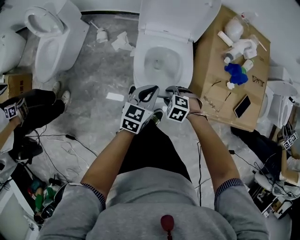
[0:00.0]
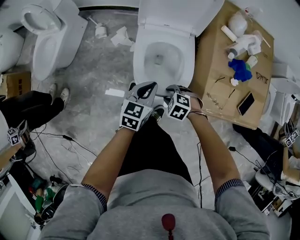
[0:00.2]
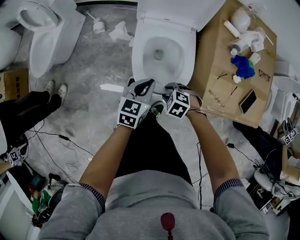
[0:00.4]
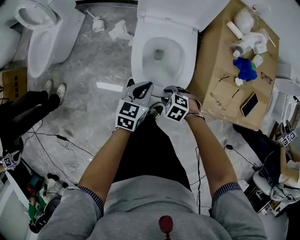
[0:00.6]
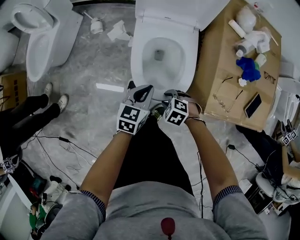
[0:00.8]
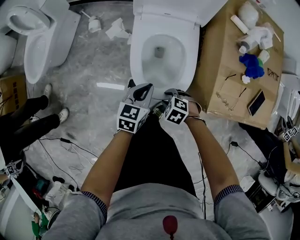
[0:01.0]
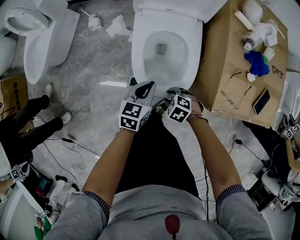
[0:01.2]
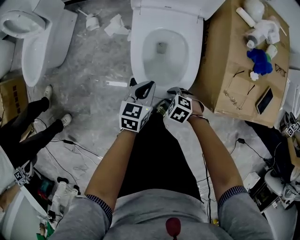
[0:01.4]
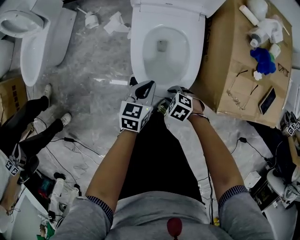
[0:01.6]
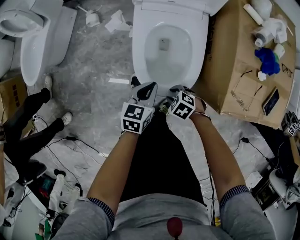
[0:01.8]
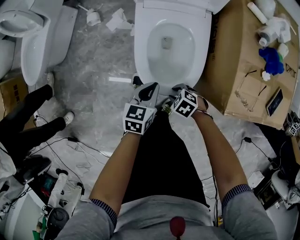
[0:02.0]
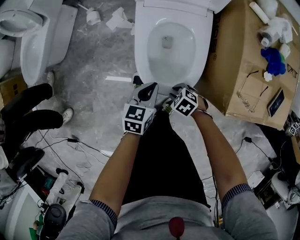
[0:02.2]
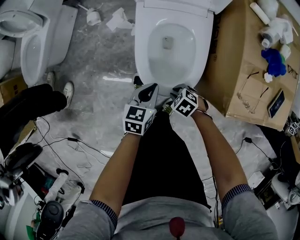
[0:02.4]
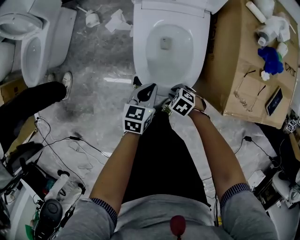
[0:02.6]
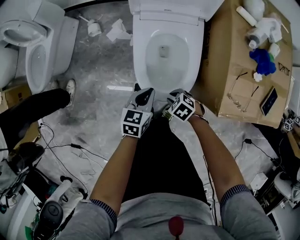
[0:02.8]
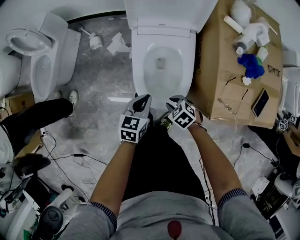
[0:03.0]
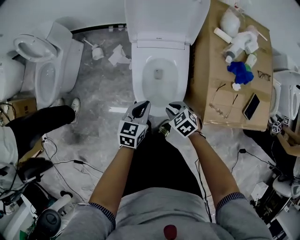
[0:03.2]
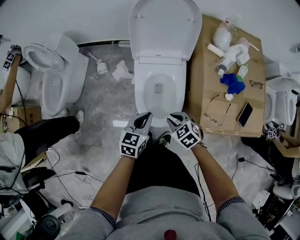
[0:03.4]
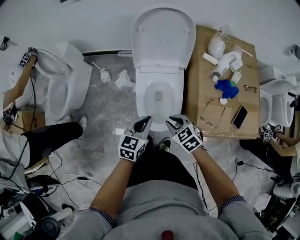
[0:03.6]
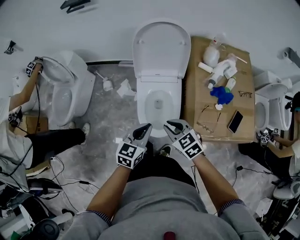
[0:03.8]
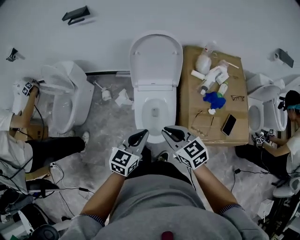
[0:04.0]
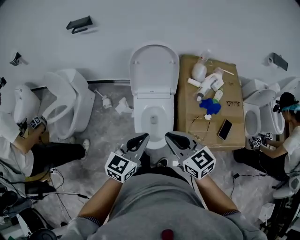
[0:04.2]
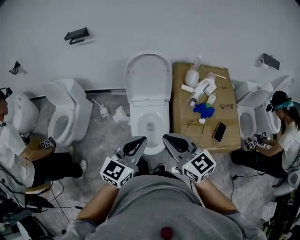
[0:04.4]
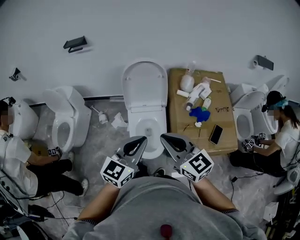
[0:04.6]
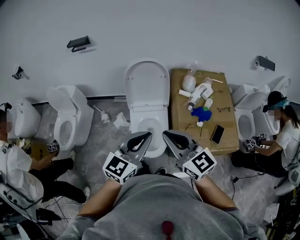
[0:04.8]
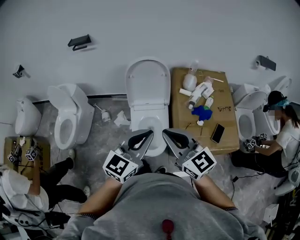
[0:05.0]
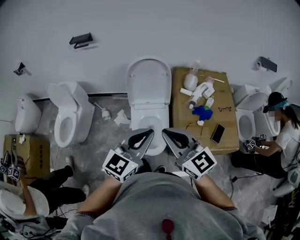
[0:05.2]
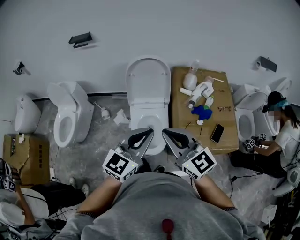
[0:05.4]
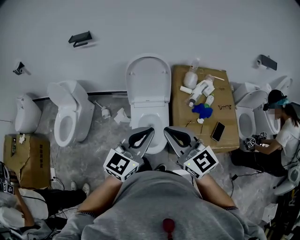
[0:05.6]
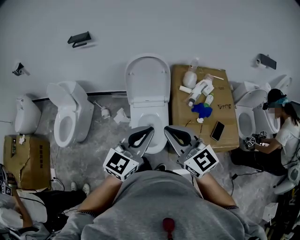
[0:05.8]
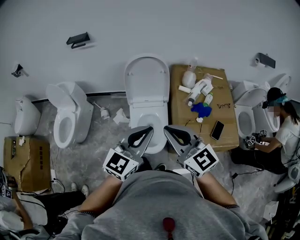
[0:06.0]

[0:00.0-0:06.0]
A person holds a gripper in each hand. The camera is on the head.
0:00.0 to 0:01.6: Both grippers move downward, roughly 15 cm.
0:01.6 to 0:03.0: The right gripper heads upward, covering about 5 cm.
0:03.0 to 0:04.4: The two grippers go about 50 cm upward. The right gripper points its fingers approximately 50 degrees further upward. The left gripper changes its angle by some 30 degrees.
0:04.4 to 0:06.0: Both grippers move upward, roughly 5 cm.

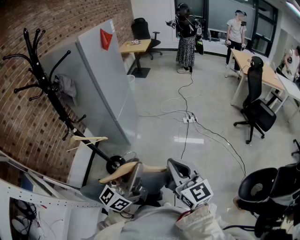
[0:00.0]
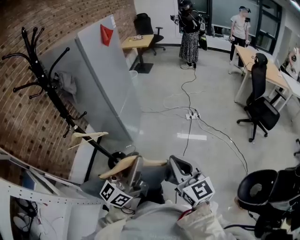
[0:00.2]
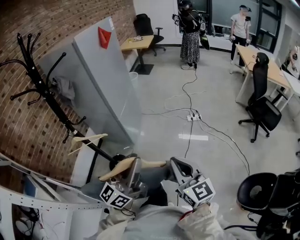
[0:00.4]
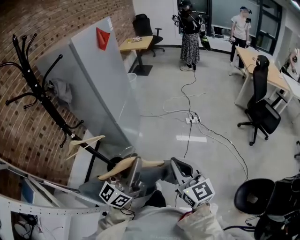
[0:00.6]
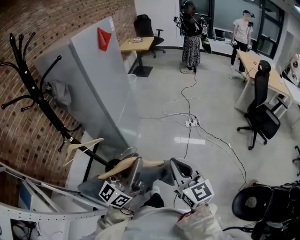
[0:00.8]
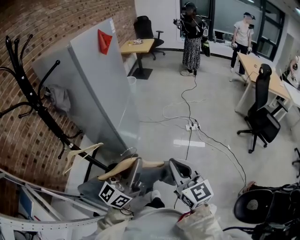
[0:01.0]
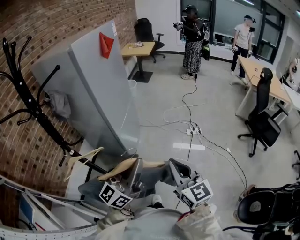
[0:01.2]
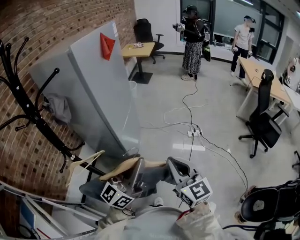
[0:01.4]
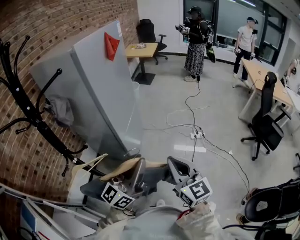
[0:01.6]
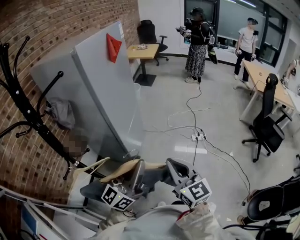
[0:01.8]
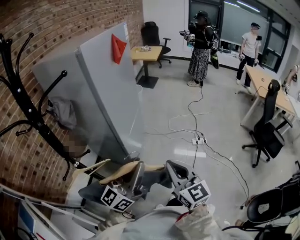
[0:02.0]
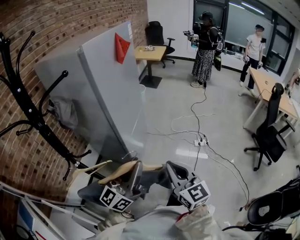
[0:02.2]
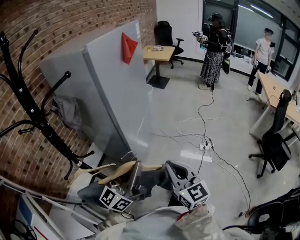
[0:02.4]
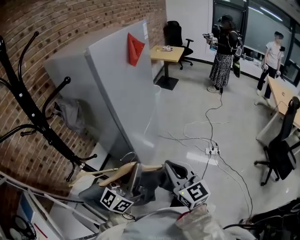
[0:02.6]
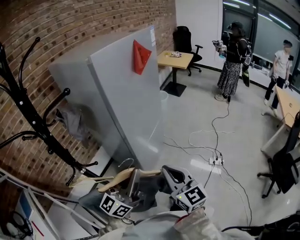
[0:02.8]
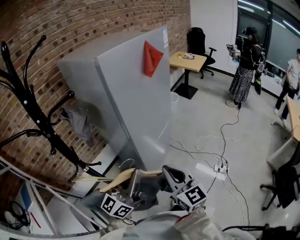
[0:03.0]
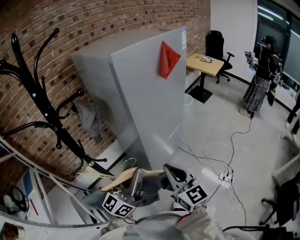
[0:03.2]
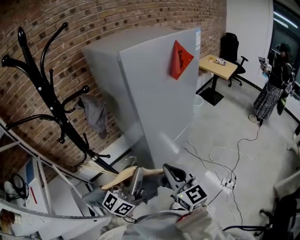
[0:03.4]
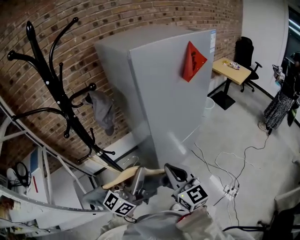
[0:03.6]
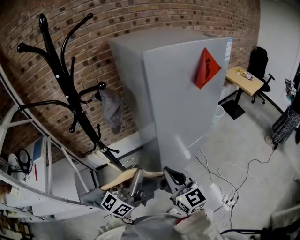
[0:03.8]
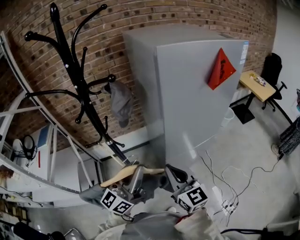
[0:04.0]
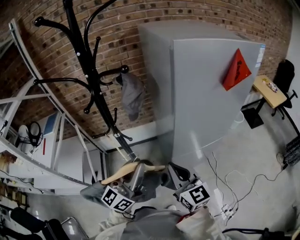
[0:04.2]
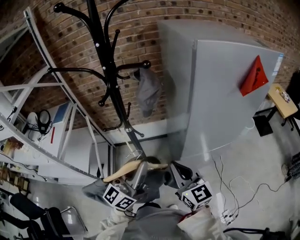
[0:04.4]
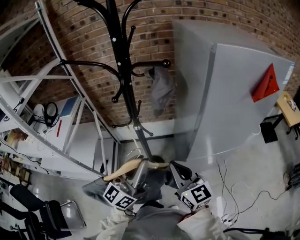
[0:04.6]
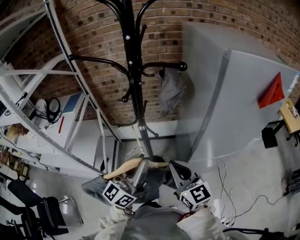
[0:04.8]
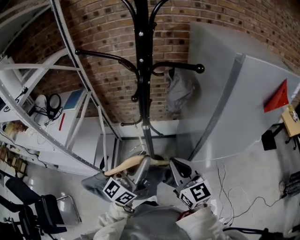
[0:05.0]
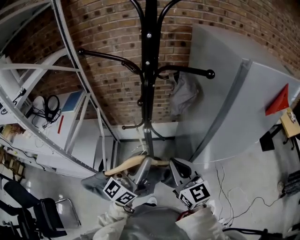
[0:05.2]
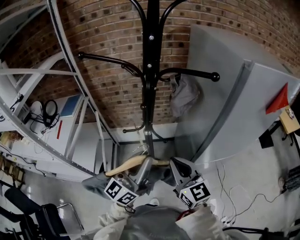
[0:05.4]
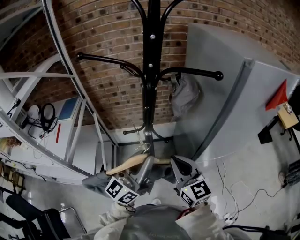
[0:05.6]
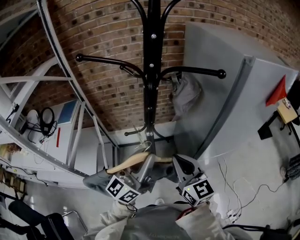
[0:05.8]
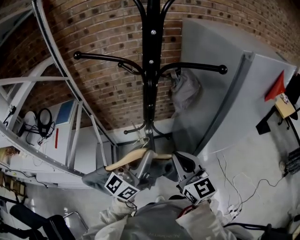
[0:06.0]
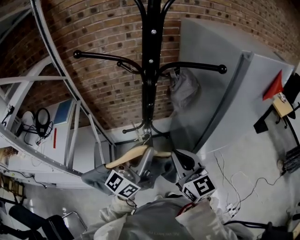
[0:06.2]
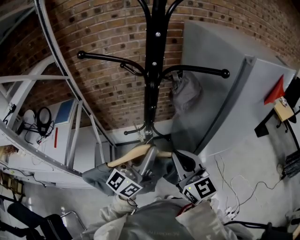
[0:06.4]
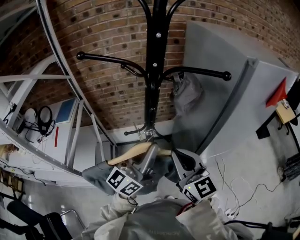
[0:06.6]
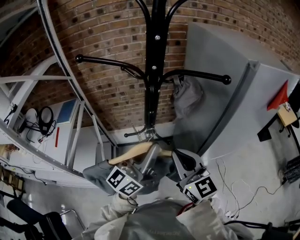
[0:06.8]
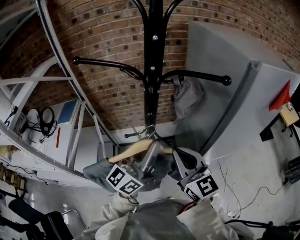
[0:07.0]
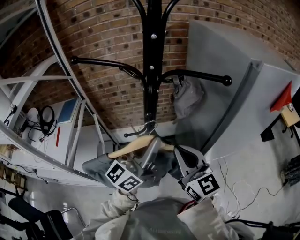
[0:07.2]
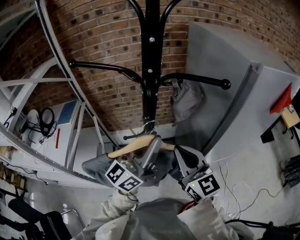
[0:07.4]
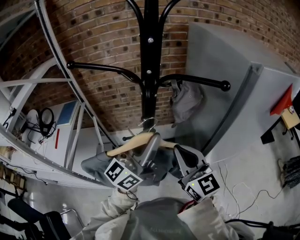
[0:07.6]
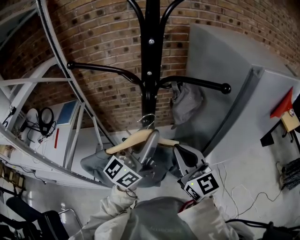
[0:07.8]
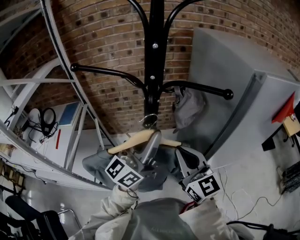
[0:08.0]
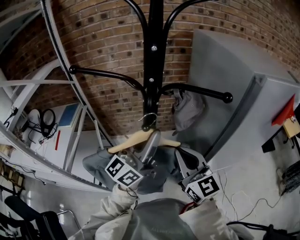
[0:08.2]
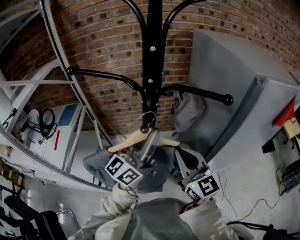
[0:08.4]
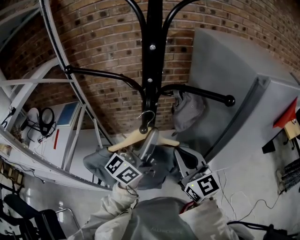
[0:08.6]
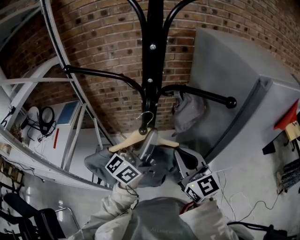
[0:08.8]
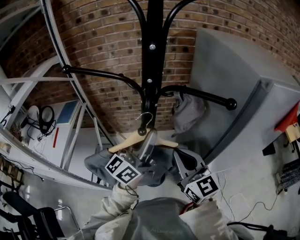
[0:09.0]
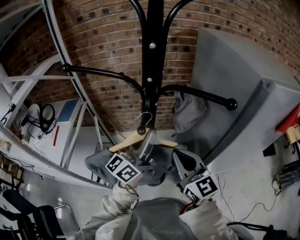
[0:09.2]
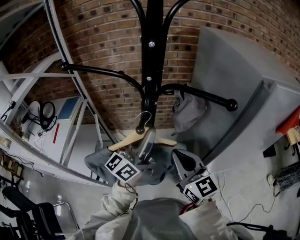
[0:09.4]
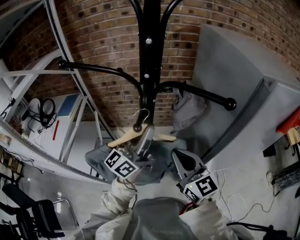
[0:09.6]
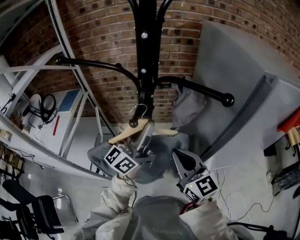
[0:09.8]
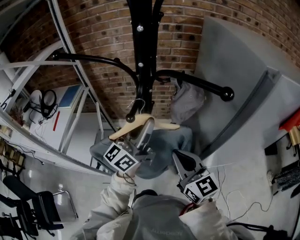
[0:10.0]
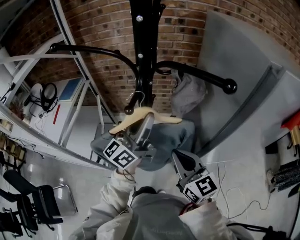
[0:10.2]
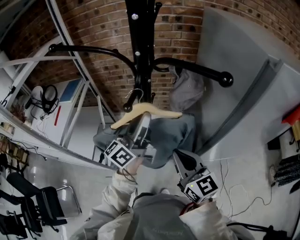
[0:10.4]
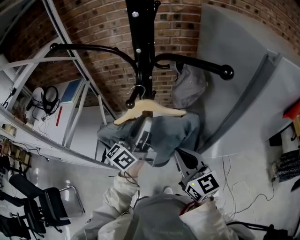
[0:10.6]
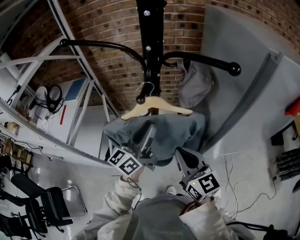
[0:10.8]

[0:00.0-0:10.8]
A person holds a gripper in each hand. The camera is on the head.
0:00.0 to 0:01.6: The two grippers go some 30 cm forward.
0:01.6 to 0:03.0: The left gripper moves approximately 20 cm, and turns by approximately 30 degrees. The right gripper moves approximately 20 cm, and rotates roughly 30 degrees.
0:03.0 to 0:04.6: The right gripper changes place by some 15 cm, and turns by some 50 degrees. Meanwhile the left gripper ends up some 10 cm from where it was, and turns by approximately 50 degrees.
0:04.6 to 0:06.2: Both grippers move to the left and forward, approximately 15 cm.
0:06.2 to 0:07.8: The left gripper is displaced forward and upward by some 10 cm; the right gripper moves forward, about 5 cm.
0:07.8 to 0:09.2: The left gripper is displaced forward by some 5 cm.
0:09.2 to 0:10.8: The left gripper travels downward by roughly 10 cm. Meanwhile the right gripper is displaced backward and downward by roughly 10 cm.

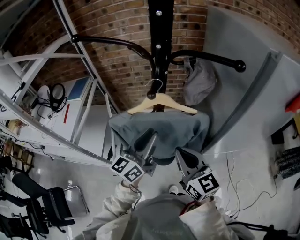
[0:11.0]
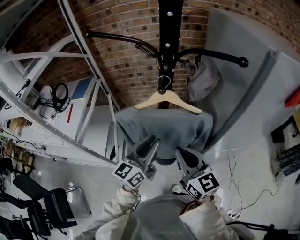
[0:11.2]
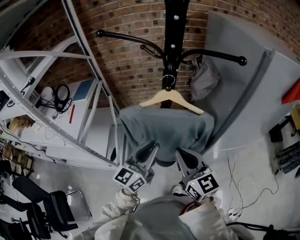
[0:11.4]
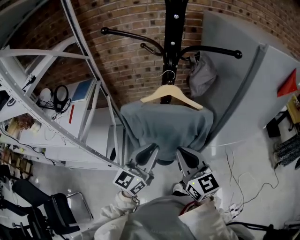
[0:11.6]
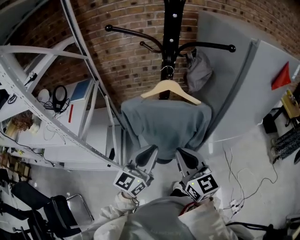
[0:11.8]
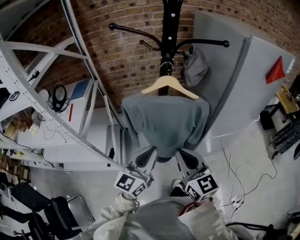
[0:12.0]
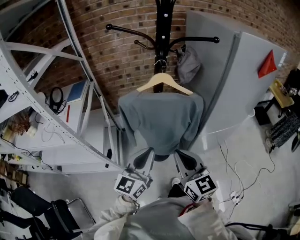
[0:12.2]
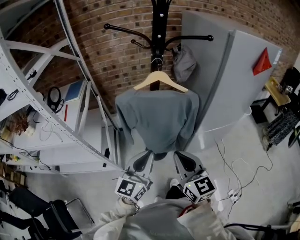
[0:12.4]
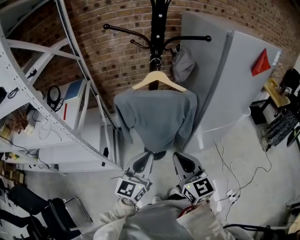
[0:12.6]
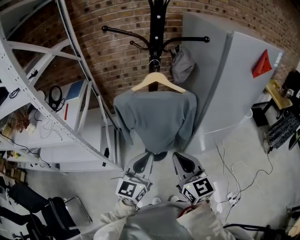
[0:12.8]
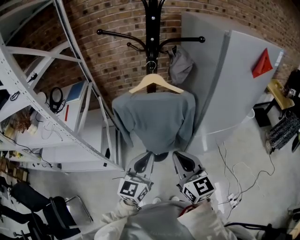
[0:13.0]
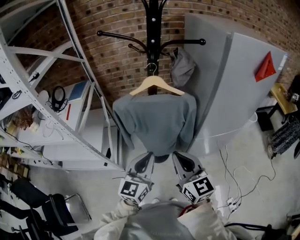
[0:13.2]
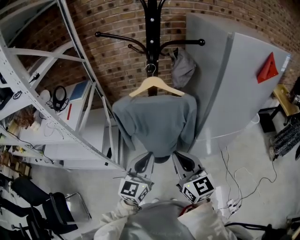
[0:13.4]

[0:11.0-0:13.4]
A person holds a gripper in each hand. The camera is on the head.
0:11.0 to 0:12.2: The two grippers go roughly 20 cm backward. The left gripper closes up.
0:12.2 to 0:13.4: The two grippers go about 5 cm to the right.

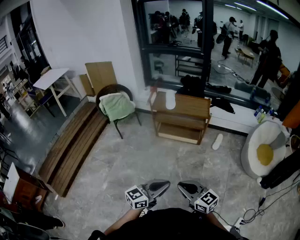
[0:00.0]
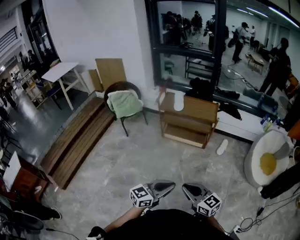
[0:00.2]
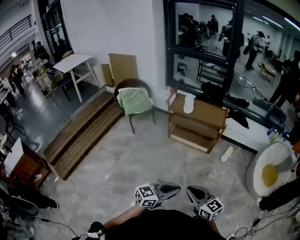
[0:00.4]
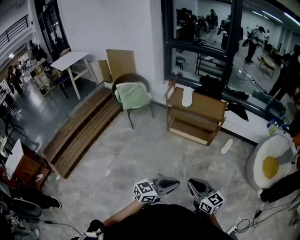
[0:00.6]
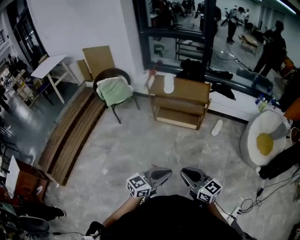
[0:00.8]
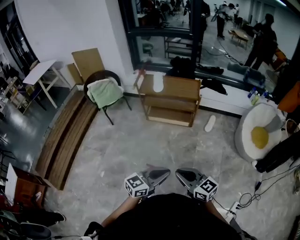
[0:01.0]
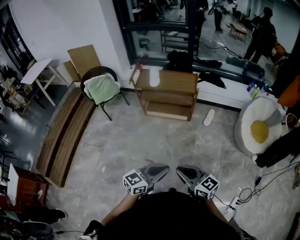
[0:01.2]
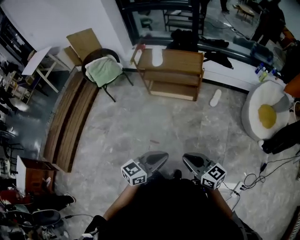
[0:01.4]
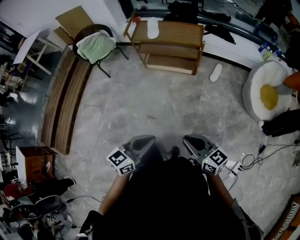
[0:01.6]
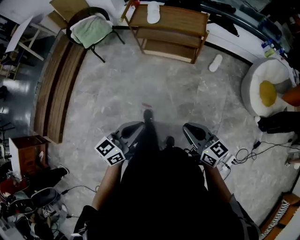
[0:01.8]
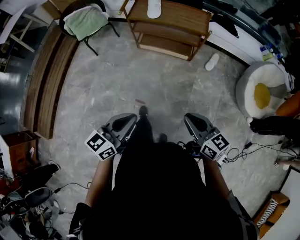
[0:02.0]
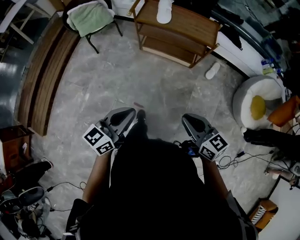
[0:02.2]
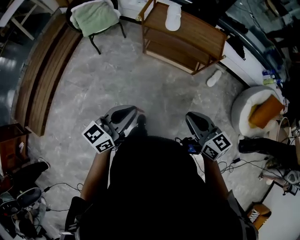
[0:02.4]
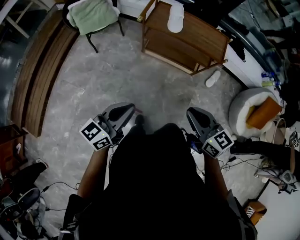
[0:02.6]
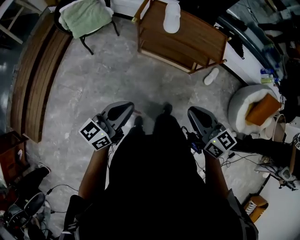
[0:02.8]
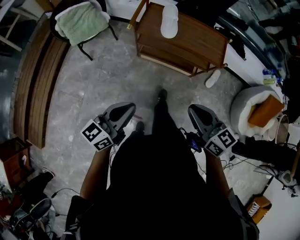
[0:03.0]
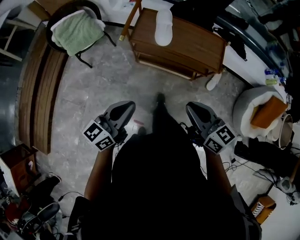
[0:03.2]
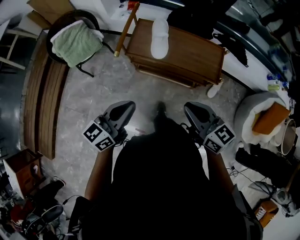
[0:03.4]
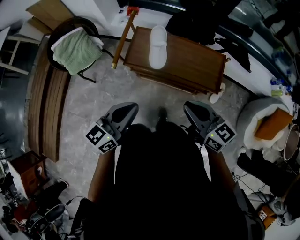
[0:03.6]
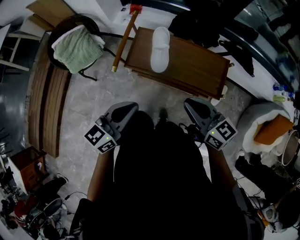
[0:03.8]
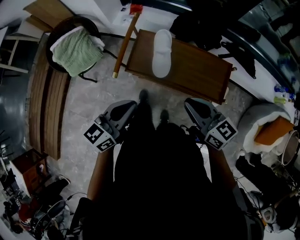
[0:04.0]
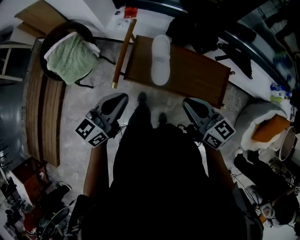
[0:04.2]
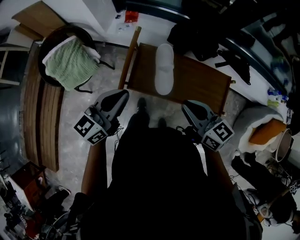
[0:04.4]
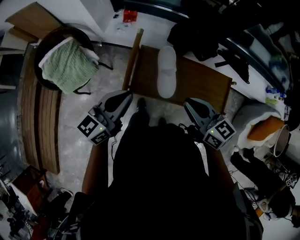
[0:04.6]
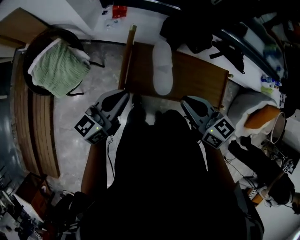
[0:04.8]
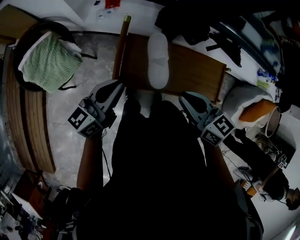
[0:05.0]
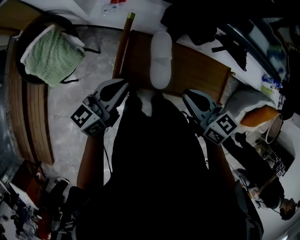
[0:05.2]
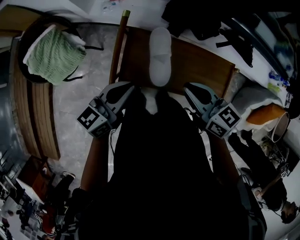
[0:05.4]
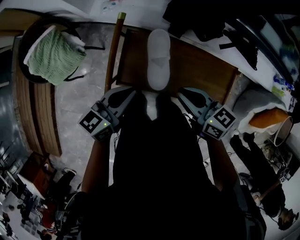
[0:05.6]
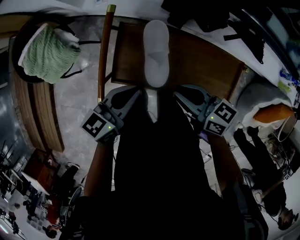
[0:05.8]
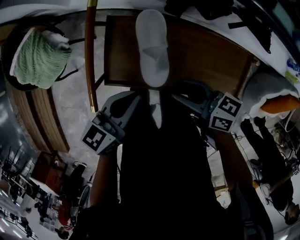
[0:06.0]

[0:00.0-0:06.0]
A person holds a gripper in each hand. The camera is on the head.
0:00.0 to 0:01.6: The left gripper shifts roughly 5 cm to the right. Meanwhile the right gripper heads to the right, covering about 15 cm.
0:01.6 to 0:03.0: Both grippers are carried forward, roughly 40 cm.
0:03.0 to 0:04.4: The grippers both shift forward by roughly 40 cm.
0:04.4 to 0:06.0: The right gripper moves downward and forward, some 20 cm, rotates some 30 degrees, and opens up. The left gripper moves downward and to the right, about 20 cm, and swivels about 20 degrees.
